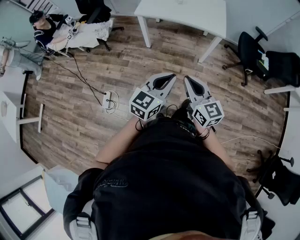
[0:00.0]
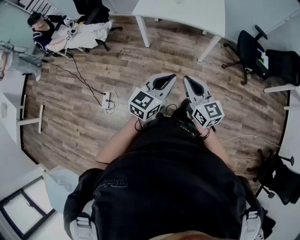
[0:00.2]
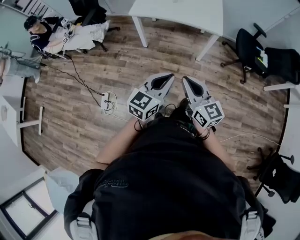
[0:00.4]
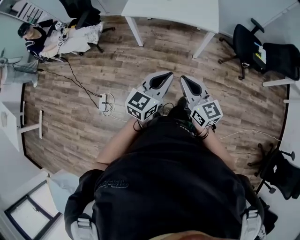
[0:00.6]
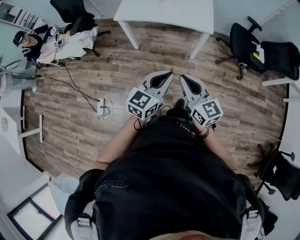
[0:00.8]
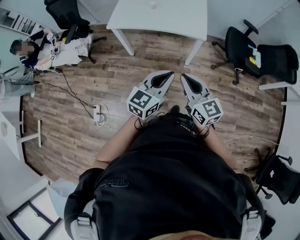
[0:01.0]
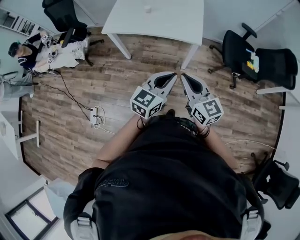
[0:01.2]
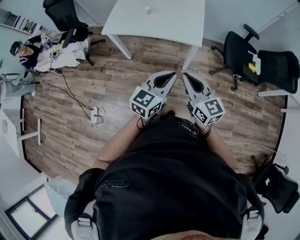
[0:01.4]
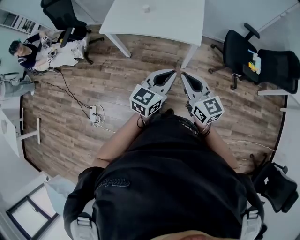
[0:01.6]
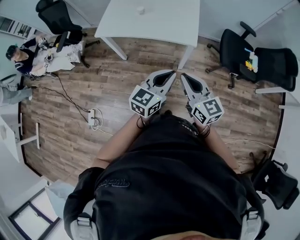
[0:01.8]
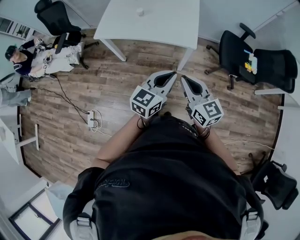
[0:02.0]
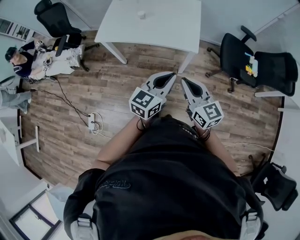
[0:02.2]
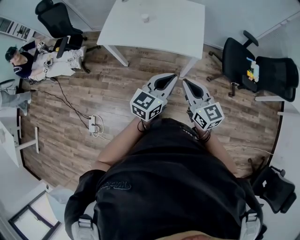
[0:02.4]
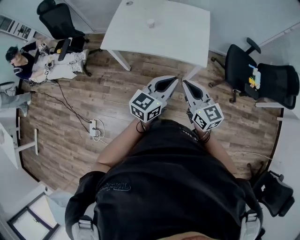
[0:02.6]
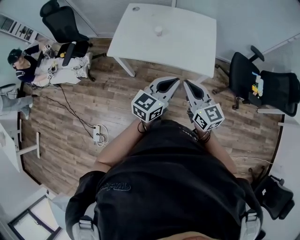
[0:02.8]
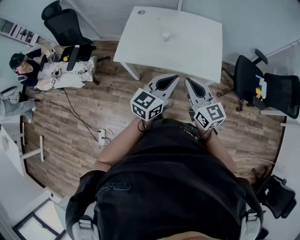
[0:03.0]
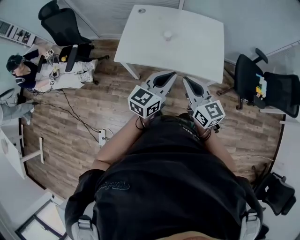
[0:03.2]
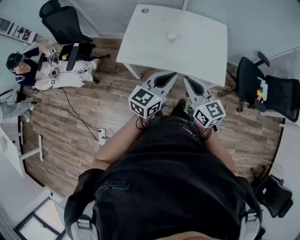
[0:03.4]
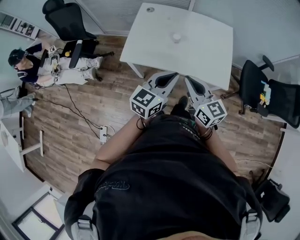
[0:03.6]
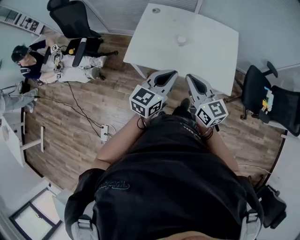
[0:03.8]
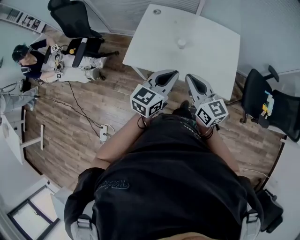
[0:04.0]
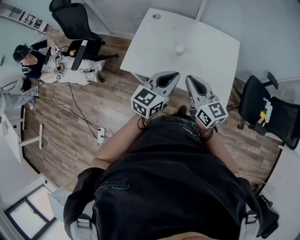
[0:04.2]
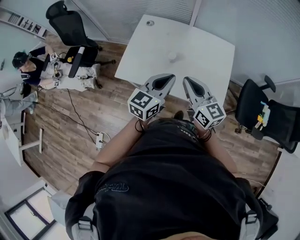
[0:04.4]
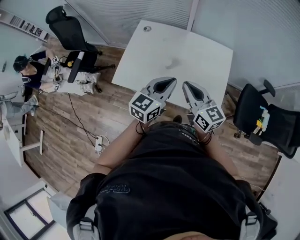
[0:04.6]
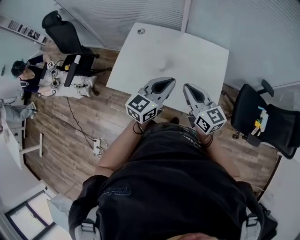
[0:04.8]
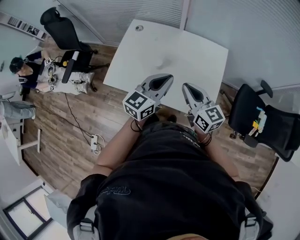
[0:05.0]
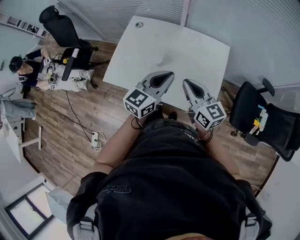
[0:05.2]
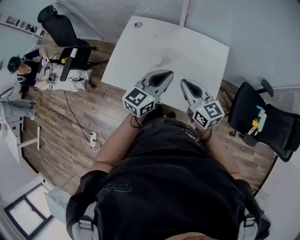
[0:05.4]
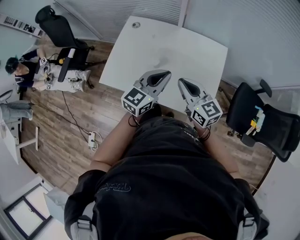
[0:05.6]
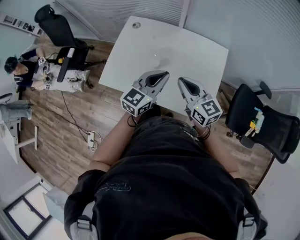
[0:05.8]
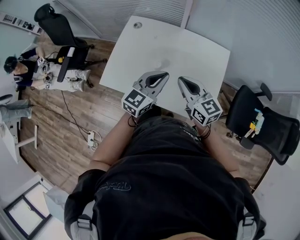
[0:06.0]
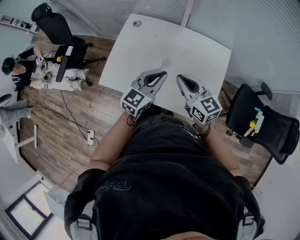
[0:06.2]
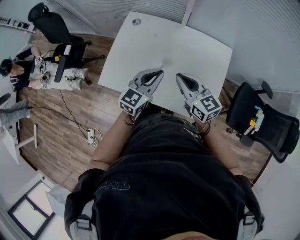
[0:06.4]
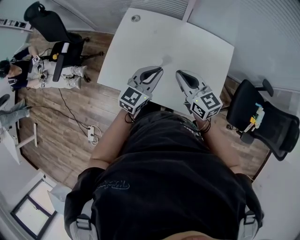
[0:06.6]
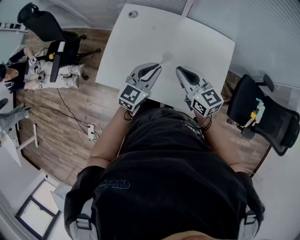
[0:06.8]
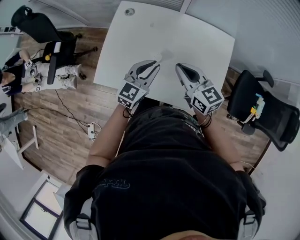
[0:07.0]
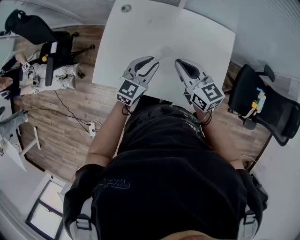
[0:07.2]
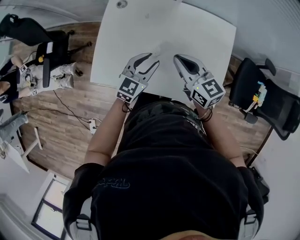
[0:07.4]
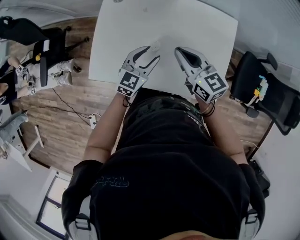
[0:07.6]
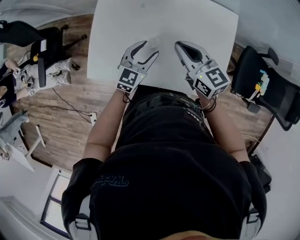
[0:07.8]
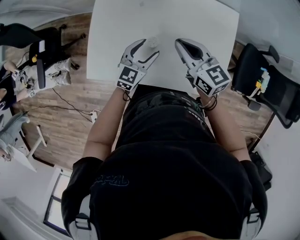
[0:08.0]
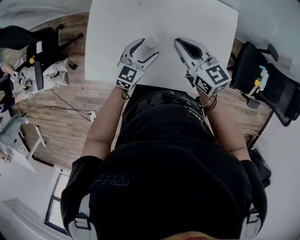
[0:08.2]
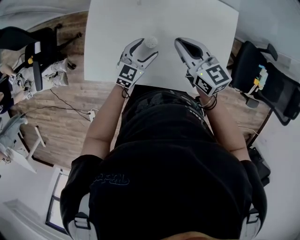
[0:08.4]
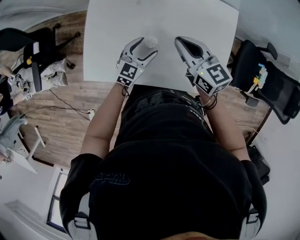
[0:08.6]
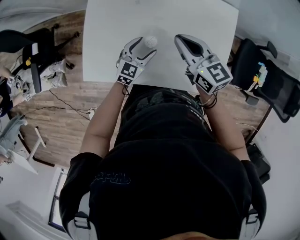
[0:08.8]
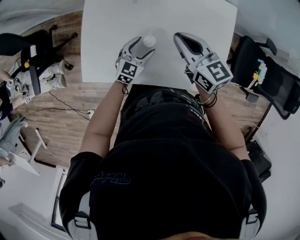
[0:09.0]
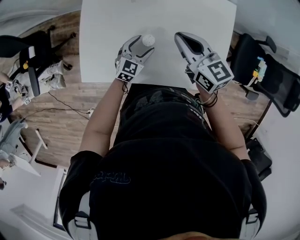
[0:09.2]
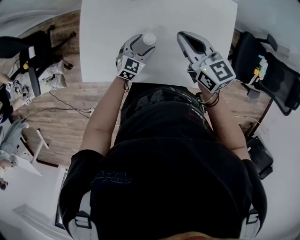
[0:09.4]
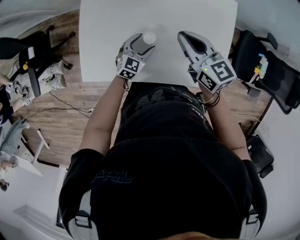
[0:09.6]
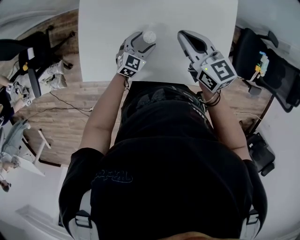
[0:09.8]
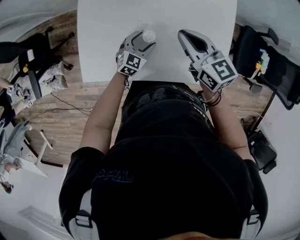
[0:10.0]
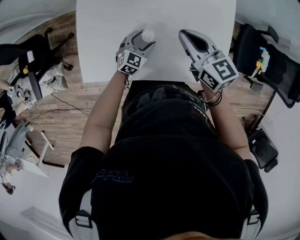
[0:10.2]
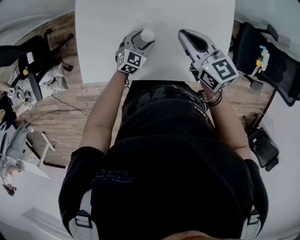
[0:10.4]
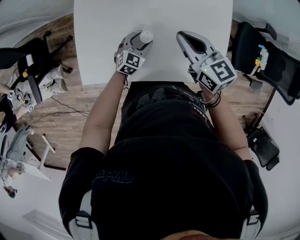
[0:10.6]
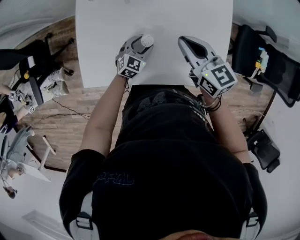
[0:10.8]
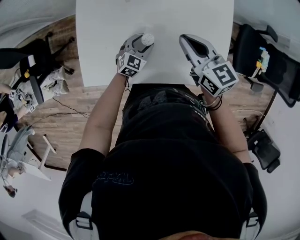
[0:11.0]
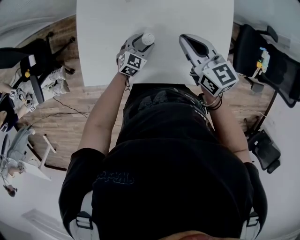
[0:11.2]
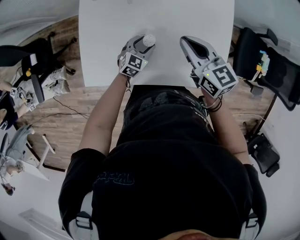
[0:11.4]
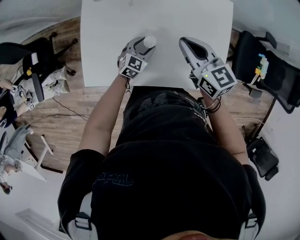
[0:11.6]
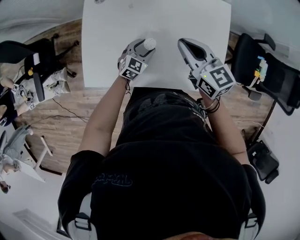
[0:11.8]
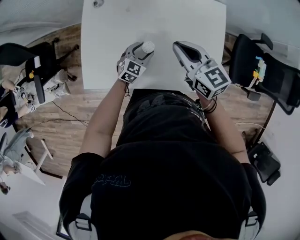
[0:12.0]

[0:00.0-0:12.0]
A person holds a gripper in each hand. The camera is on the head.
0:00.0 to 0:01.6: The grippers both shift forward and to the right by approximately 30 cm.
0:01.6 to 0:03.0: Both grippers travel together forward and to the left, approximately 25 cm.
0:03.0 to 0:04.4: Both grippers move forward, some 20 cm.
0:04.4 to 0:06.0: The grippers both shift forward and to the right by some 10 cm.
0:06.0 to 0:07.6: The left gripper moves downward, forward and to the left, roughly 20 cm, and opens up, while the right gripper is displaced forward and downward by some 10 cm.
0:07.6 to 0:09.0: The left gripper shifts about 10 cm downward, and opens up.
0:09.0 to 0:12.0: There are only small adjustments of the grippers.

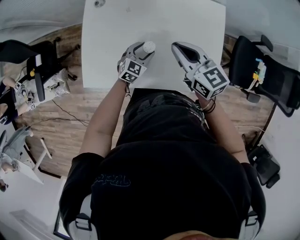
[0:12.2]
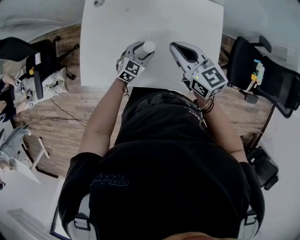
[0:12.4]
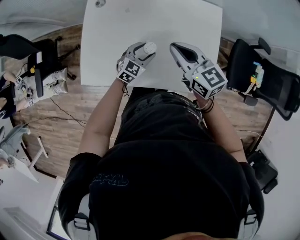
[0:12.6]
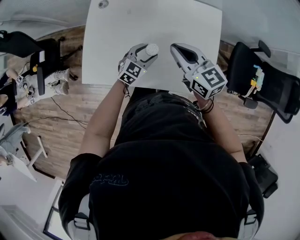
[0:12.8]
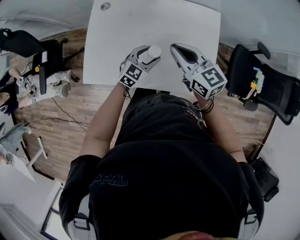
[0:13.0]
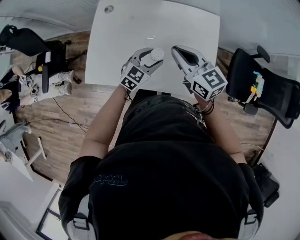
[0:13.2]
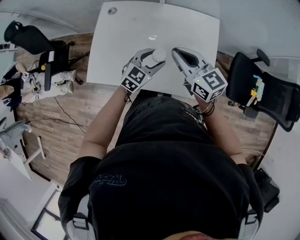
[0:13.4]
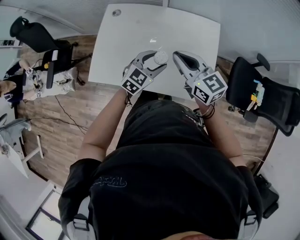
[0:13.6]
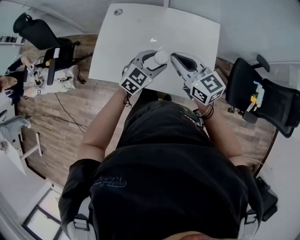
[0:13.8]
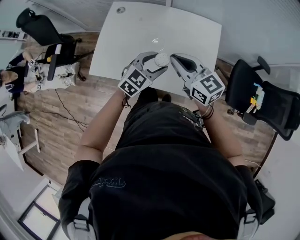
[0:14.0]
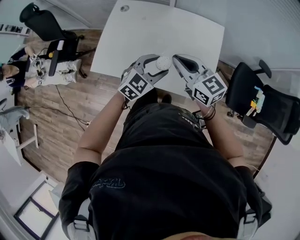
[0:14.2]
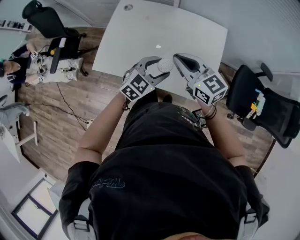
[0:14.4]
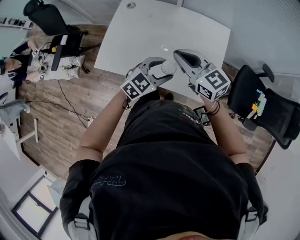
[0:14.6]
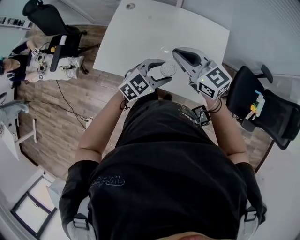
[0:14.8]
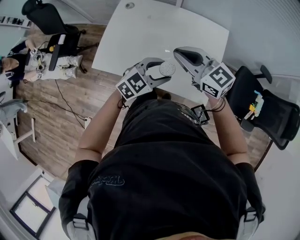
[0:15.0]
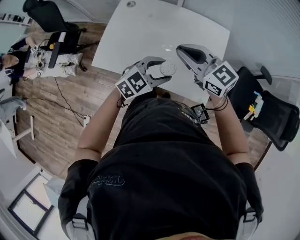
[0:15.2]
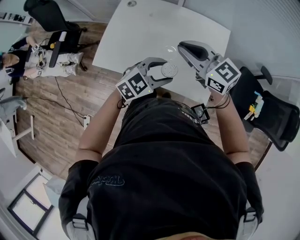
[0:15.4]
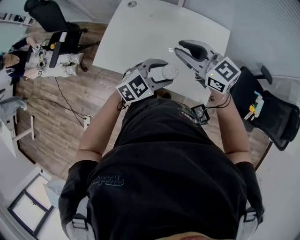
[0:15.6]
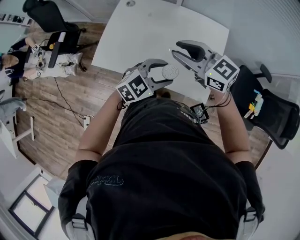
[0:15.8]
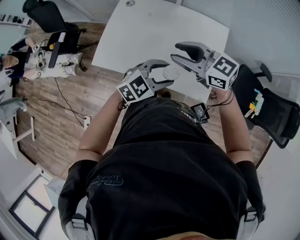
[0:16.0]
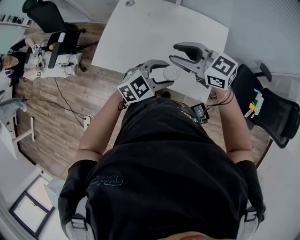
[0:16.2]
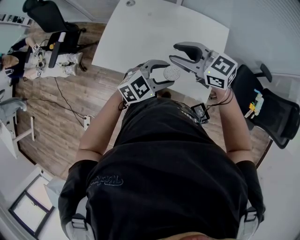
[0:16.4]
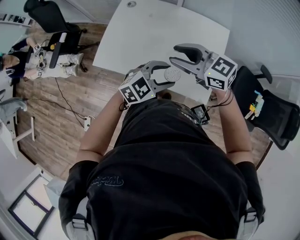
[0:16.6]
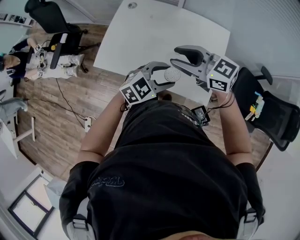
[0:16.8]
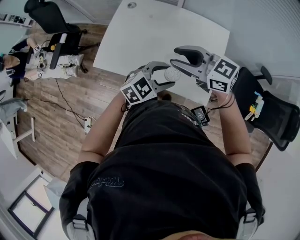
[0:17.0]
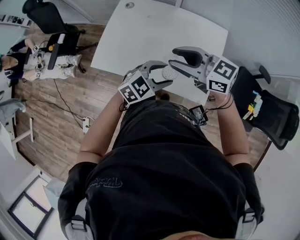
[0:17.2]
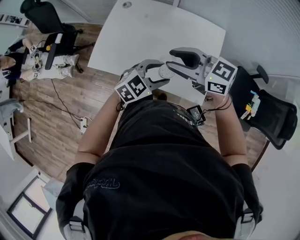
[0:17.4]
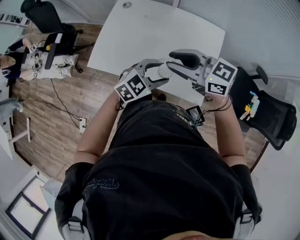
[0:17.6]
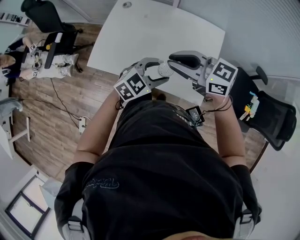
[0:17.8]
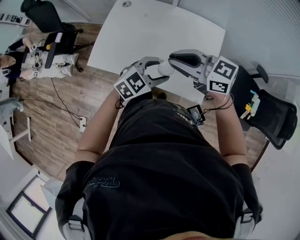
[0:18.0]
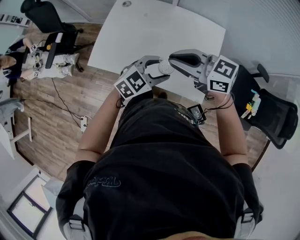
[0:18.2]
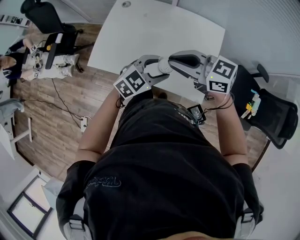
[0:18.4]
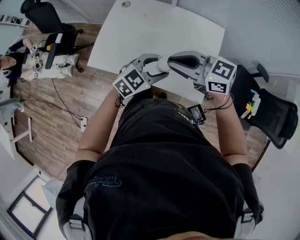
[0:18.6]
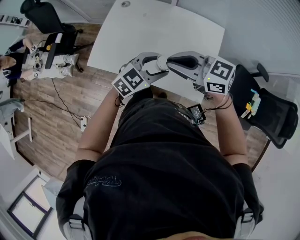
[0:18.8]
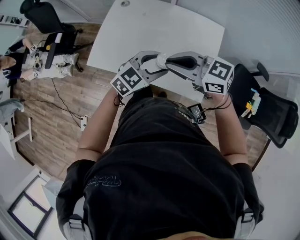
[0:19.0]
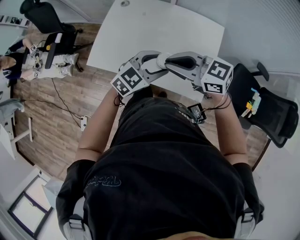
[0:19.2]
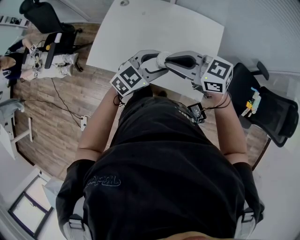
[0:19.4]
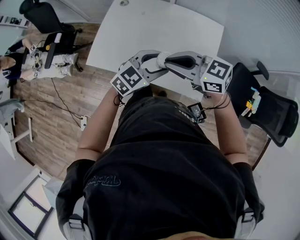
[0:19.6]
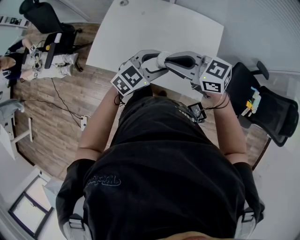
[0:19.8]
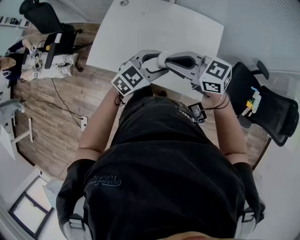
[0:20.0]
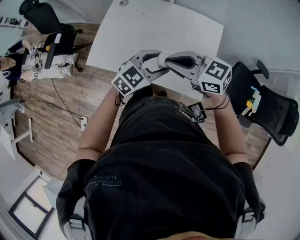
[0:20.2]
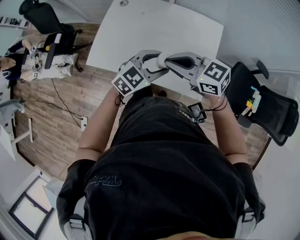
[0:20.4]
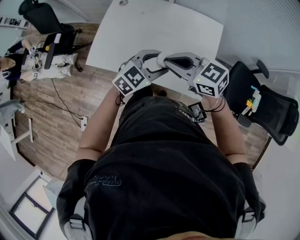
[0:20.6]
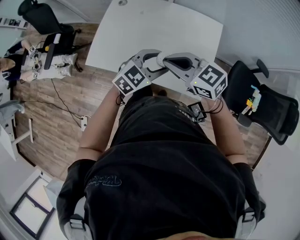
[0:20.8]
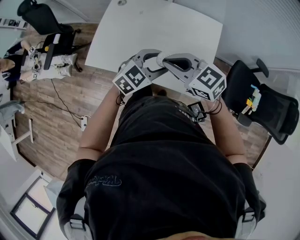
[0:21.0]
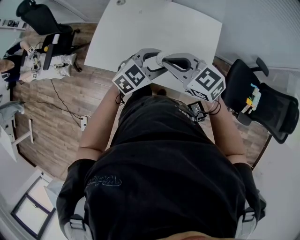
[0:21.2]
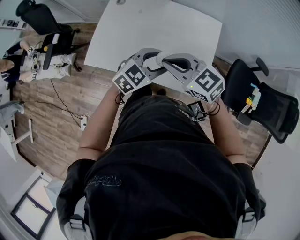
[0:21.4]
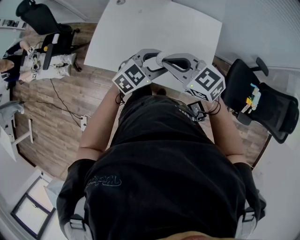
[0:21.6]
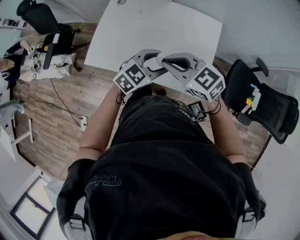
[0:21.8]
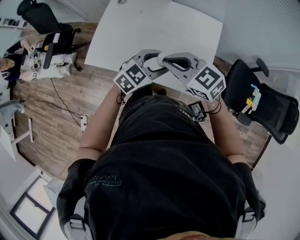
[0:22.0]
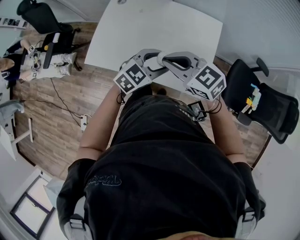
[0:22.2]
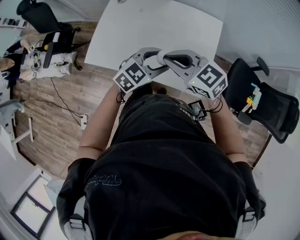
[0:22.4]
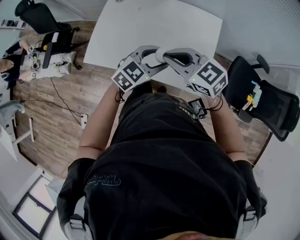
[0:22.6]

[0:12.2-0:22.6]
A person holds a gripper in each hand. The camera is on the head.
0:12.2 to 0:13.6: The left gripper shifts about 20 cm upward and to the right, while the right gripper moves upward and backward, roughly 10 cm.
0:13.6 to 0:15.2: The right gripper changes its angle by roughly 20 degrees, while the left gripper travels backward by roughly 10 cm.
0:15.2 to 0:16.6: The right gripper opens up.
0:16.6 to 0:18.2: The right gripper closes its fingers.
0:18.2 to 0:21.2: There are only small adjustments of the grippers.
0:21.2 to 0:22.6: Neither gripper changes place.

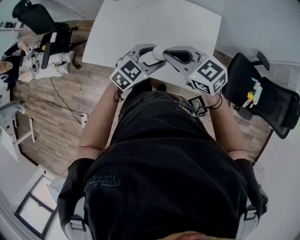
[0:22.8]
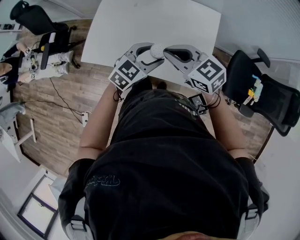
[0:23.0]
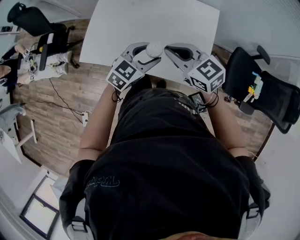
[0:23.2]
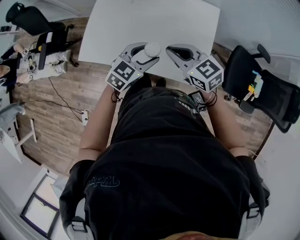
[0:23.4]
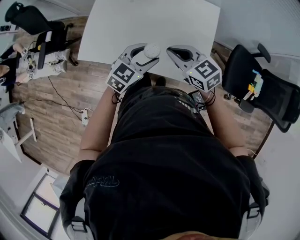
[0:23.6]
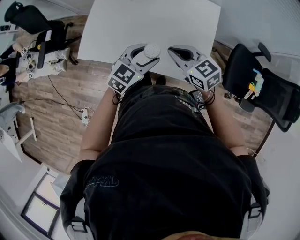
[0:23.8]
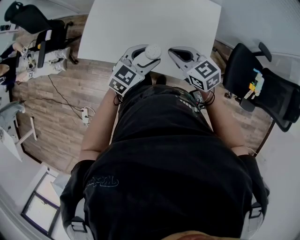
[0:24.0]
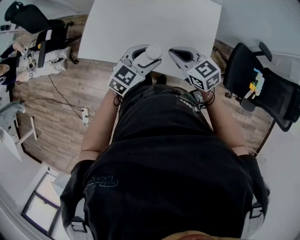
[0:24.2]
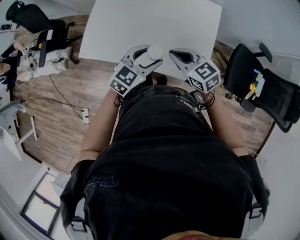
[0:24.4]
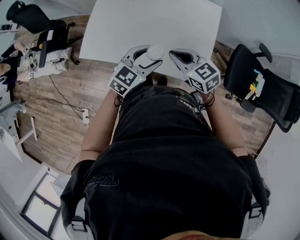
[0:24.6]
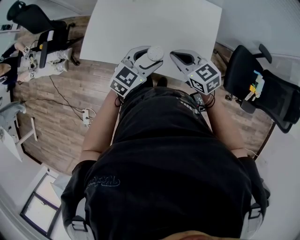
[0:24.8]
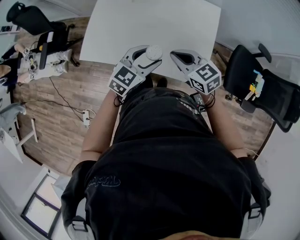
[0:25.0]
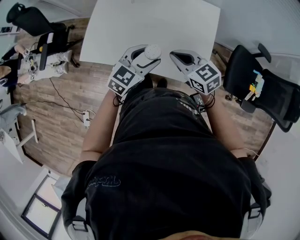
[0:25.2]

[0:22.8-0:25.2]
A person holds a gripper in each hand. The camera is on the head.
0:22.8 to 0:24.0: The right gripper travels downward by approximately 10 cm.
0:24.0 to 0:25.2: There are only small adjustments of the grippers.
